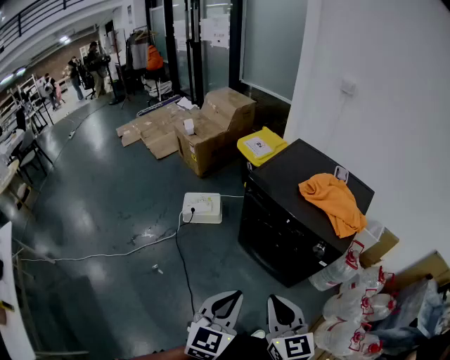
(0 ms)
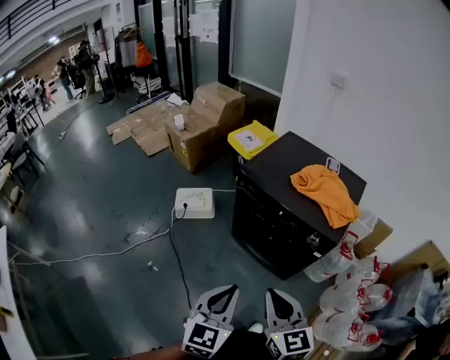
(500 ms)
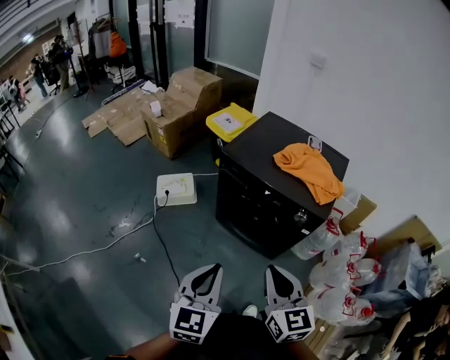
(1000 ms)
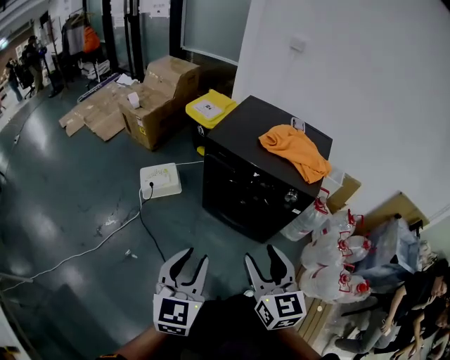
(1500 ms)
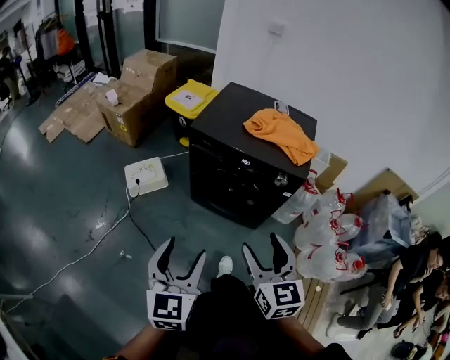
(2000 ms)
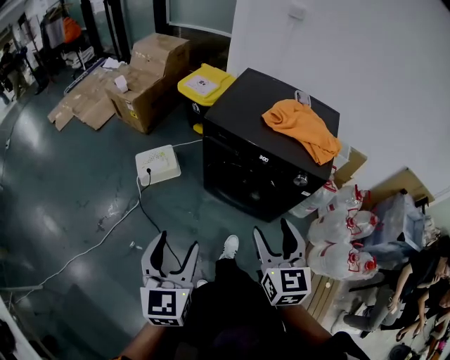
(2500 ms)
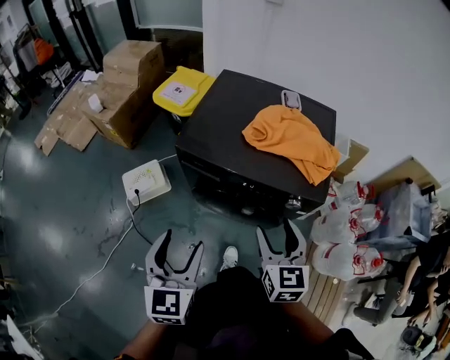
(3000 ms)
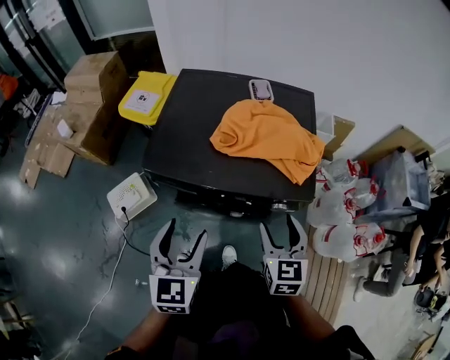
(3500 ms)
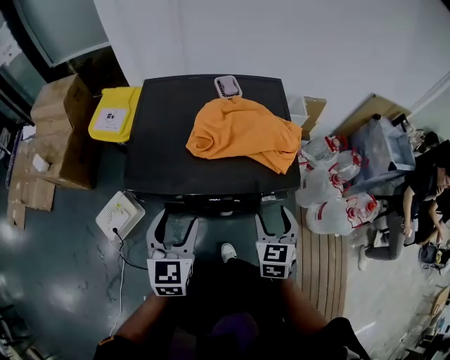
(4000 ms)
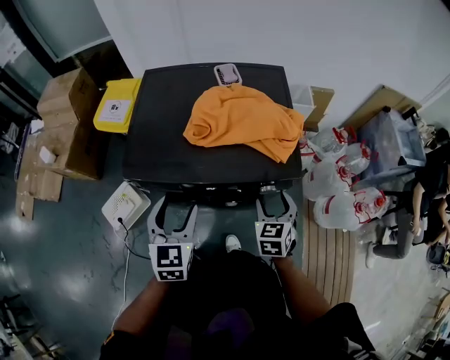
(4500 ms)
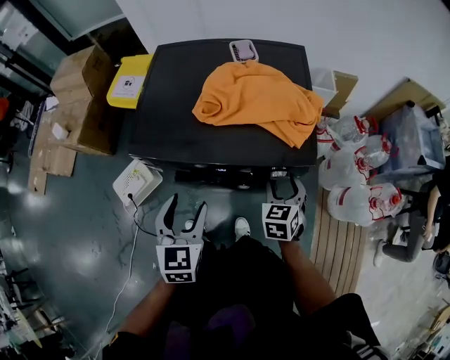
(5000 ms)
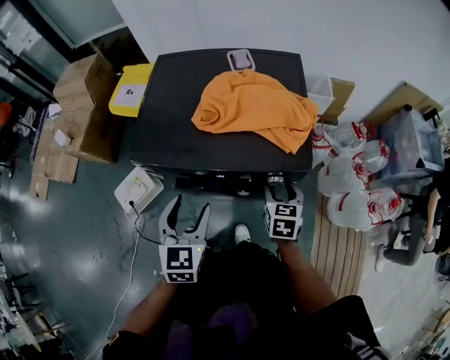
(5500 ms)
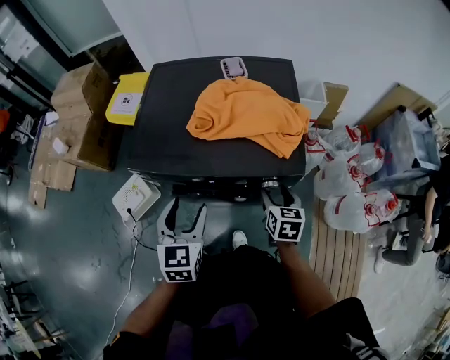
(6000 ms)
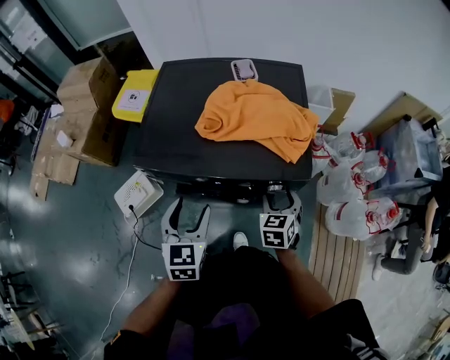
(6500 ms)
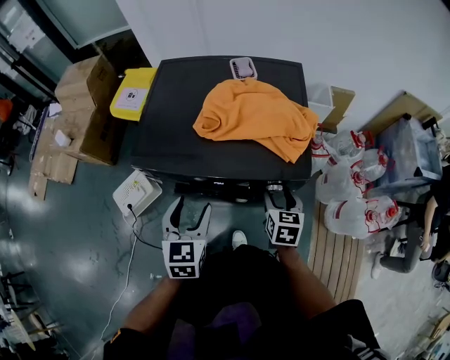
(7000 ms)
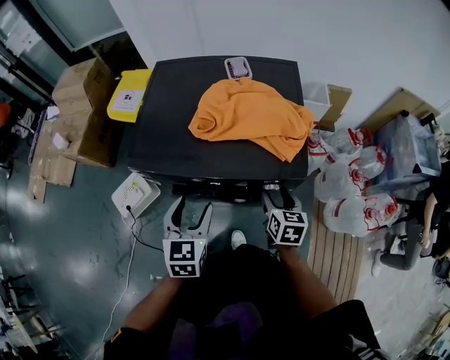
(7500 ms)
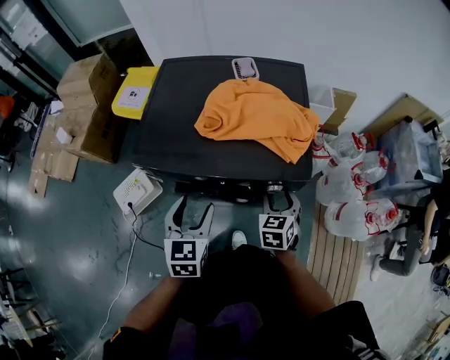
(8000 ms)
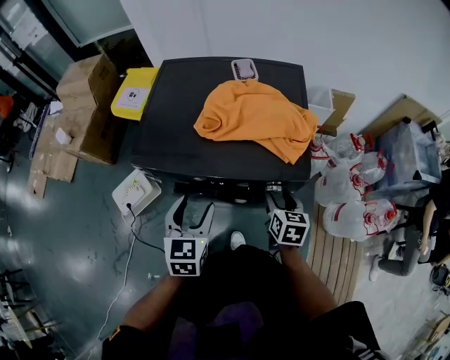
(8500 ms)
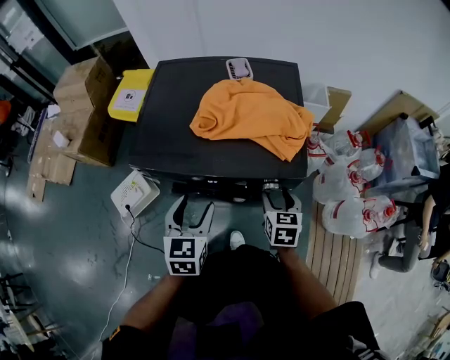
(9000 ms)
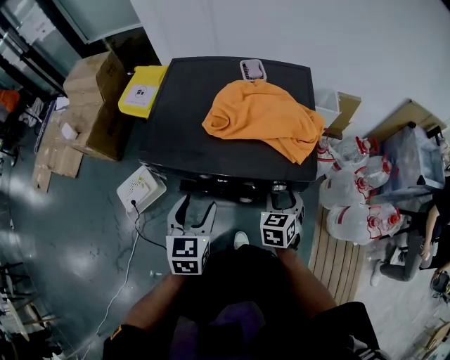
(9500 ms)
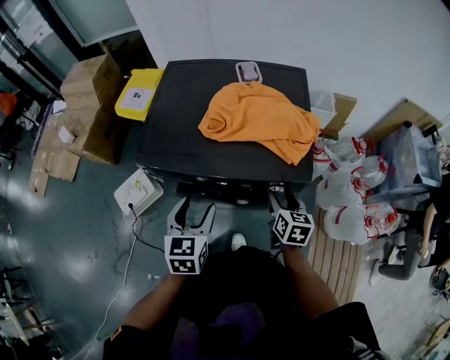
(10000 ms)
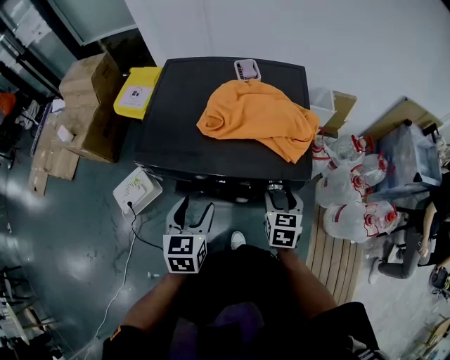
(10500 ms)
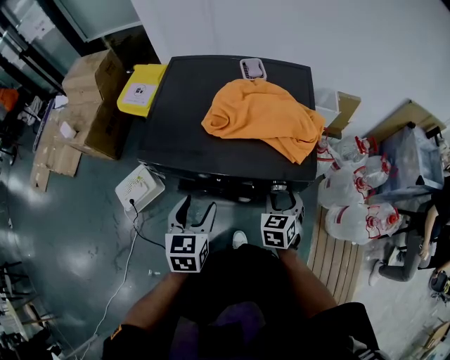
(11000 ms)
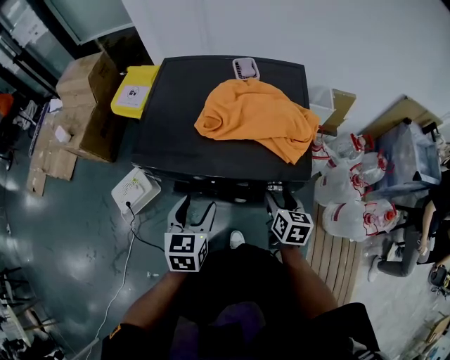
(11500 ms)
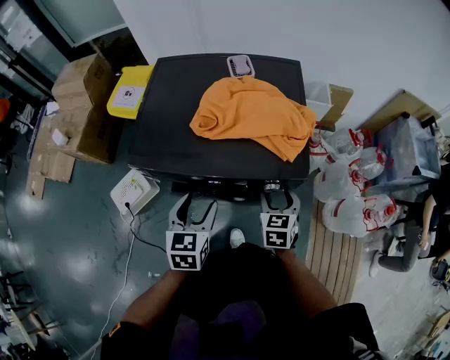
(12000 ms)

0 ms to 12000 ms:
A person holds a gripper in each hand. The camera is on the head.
0 ms to 2000 ms: The right gripper rotates some 20 degrees, and opens; the left gripper shifts about 10 cm to the left, and opens its fingers.
2000 ms to 4000 ms: The right gripper ends up some 40 cm from where it was, and rotates roughly 40 degrees, while the left gripper shifts by roughly 40 cm, and swivels about 20 degrees.
4000 ms to 6000 ms: The left gripper changes place by about 5 cm; the right gripper heads downward, covering some 10 cm, and rotates about 20 degrees.
6000 ms to 8000 ms: The right gripper swivels approximately 20 degrees.
8000 ms to 10000 ms: The right gripper swivels some 30 degrees.
10000 ms to 12000 ms: The right gripper changes its angle by some 20 degrees.

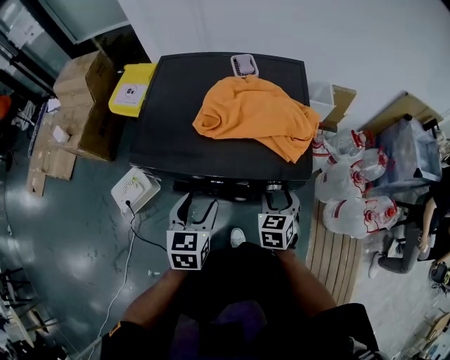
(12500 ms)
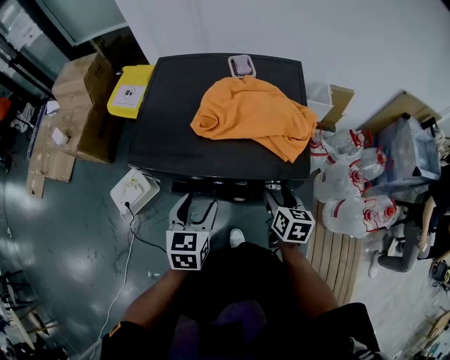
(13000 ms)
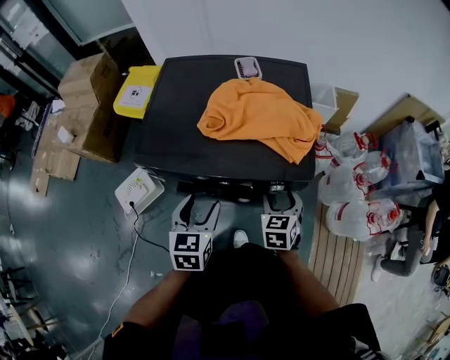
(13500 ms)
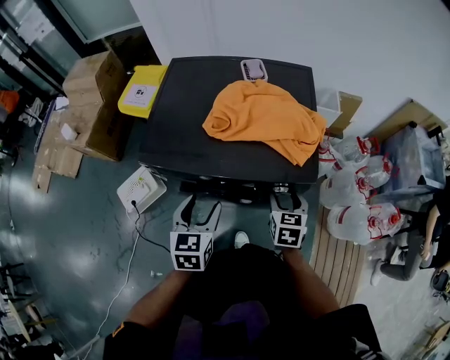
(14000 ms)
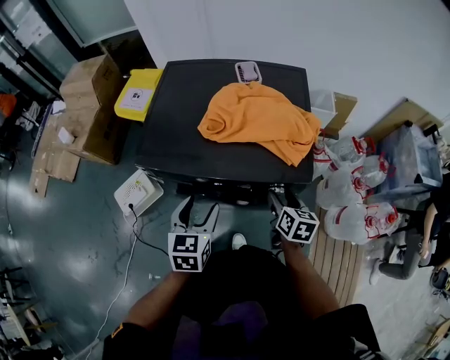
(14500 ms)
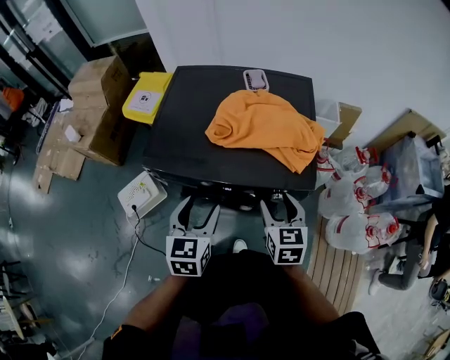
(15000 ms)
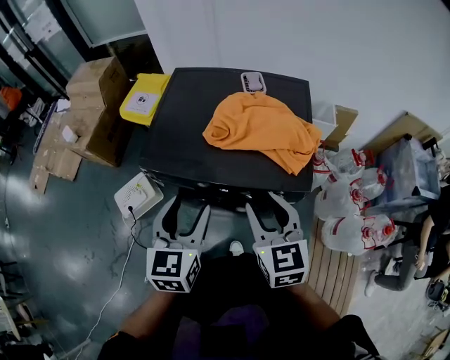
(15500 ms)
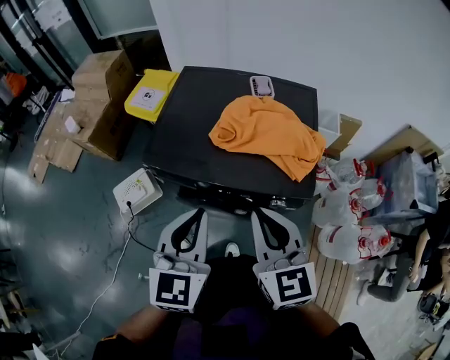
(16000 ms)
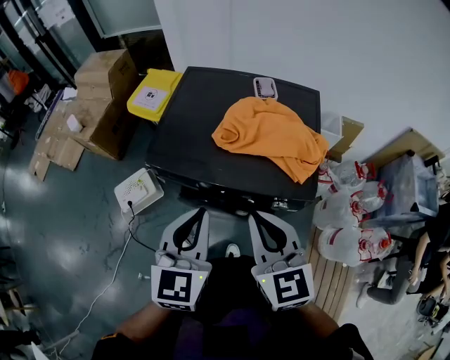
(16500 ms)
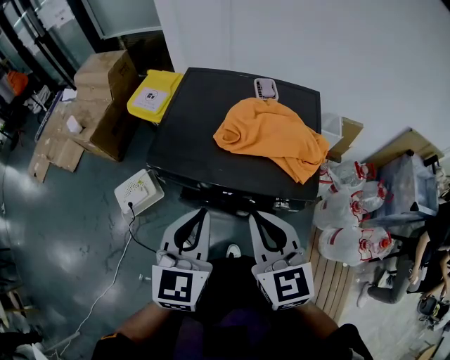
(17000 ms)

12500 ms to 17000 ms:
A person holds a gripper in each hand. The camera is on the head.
12500 ms to 14500 ms: The right gripper rotates some 40 degrees.
14500 ms to 17000 ms: The right gripper shifts about 30 cm upward and to the left, swivels approximately 40 degrees, and closes its fingers. The left gripper moves upward, approximately 15 cm, and closes.

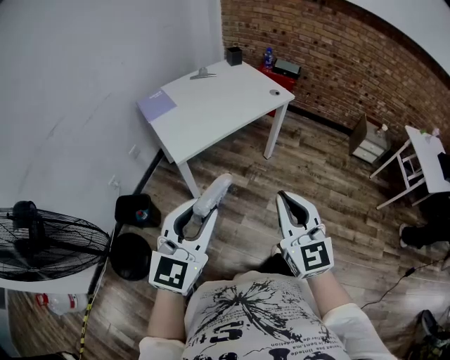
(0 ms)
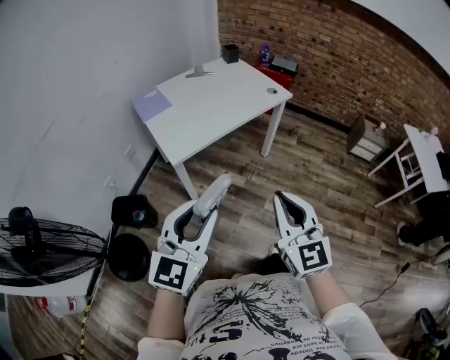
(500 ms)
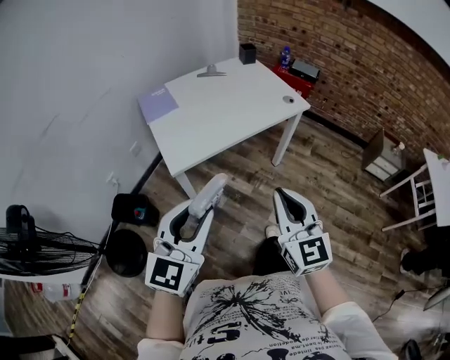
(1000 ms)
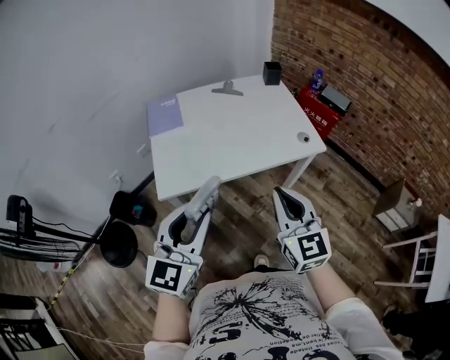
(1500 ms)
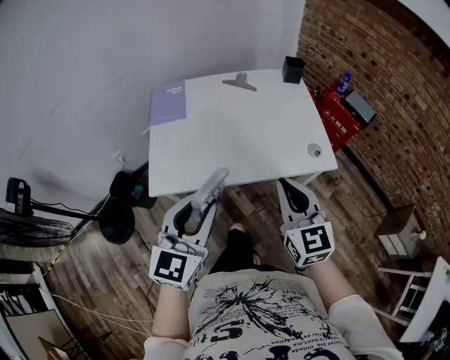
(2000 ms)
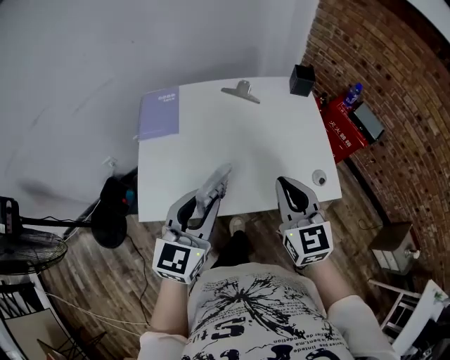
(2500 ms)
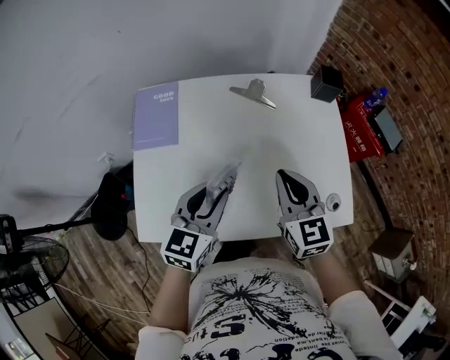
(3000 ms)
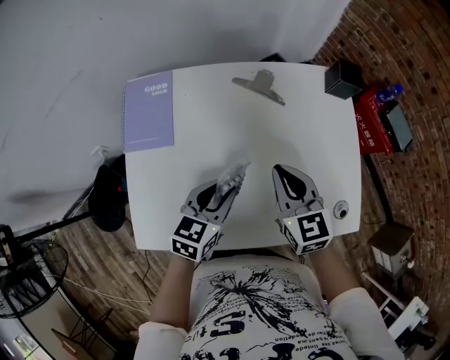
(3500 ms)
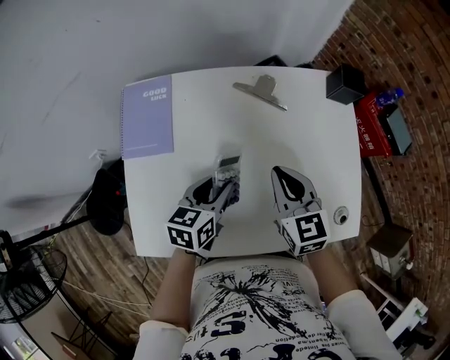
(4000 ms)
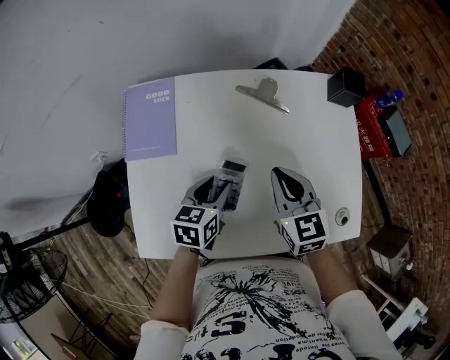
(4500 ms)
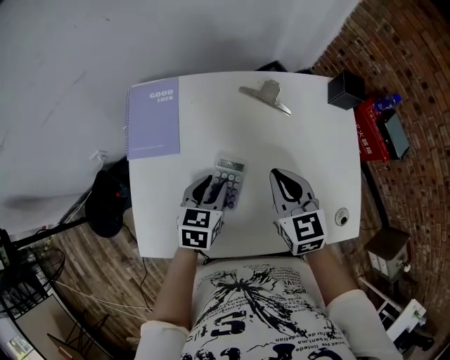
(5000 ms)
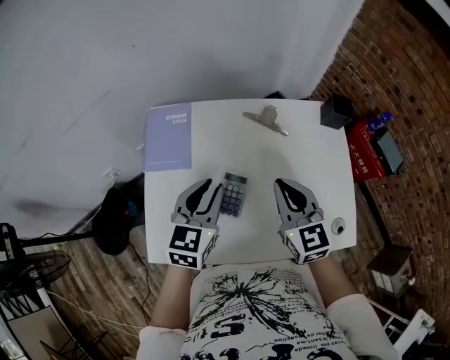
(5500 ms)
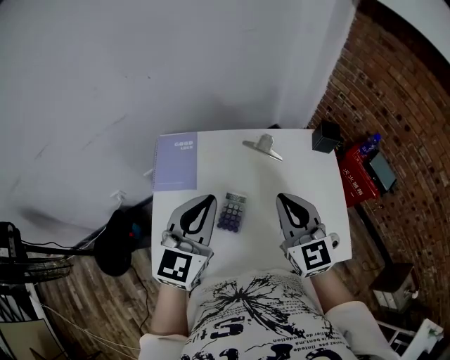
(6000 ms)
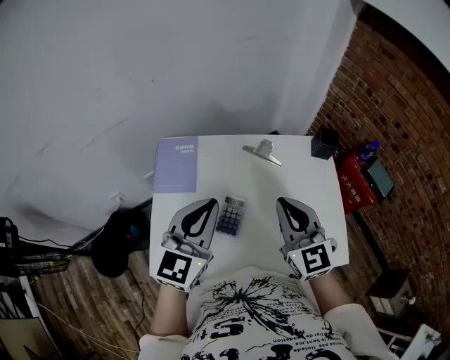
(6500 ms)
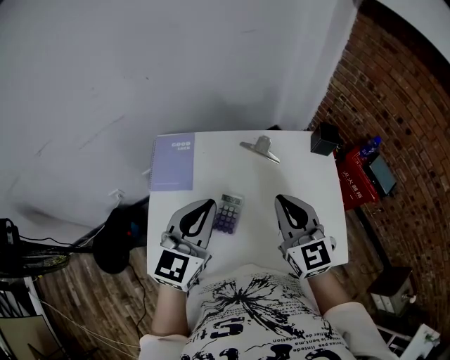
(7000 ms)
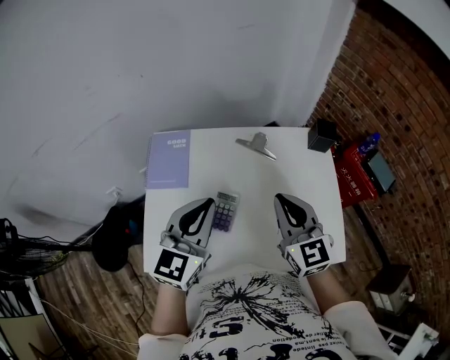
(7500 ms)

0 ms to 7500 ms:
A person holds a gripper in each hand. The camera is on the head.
0 ms to 2000 ms: Both grippers are carried approximately 50 cm. The right gripper turns by roughly 30 degrees. The left gripper changes its angle by about 30 degrees.
2000 ms to 4000 ms: The two grippers travel together, forward, approximately 40 cm. The grippers both shift downward by roughly 20 cm. The left gripper turns by roughly 40 degrees.
4000 ms to 5500 ms: The left gripper is displaced upward by some 15 cm, and swivels about 30 degrees. The right gripper moves upward, about 10 cm.
5500 ms to 7500 ms: Both grippers travel together upward, about 10 cm. The left gripper closes its fingers.

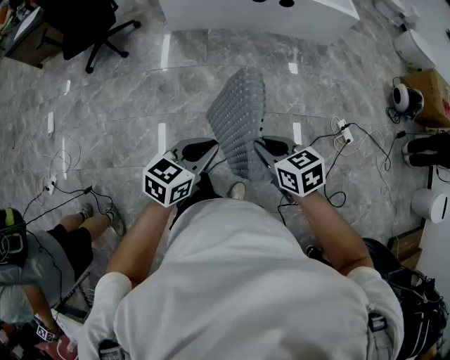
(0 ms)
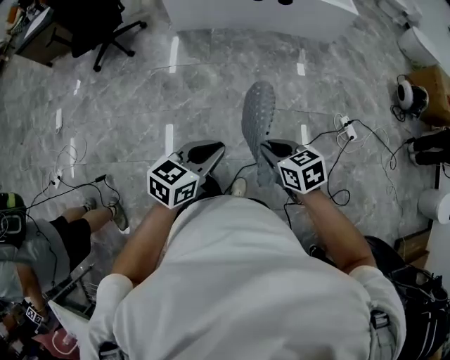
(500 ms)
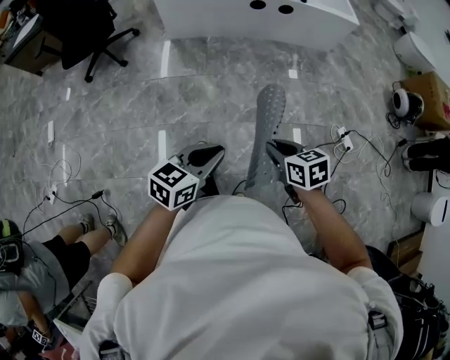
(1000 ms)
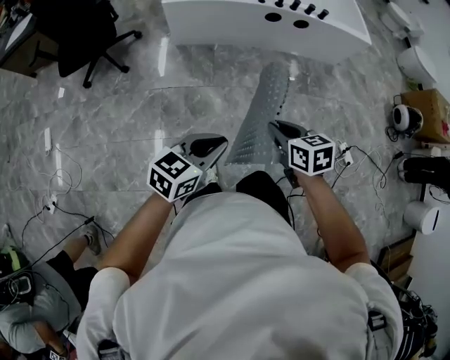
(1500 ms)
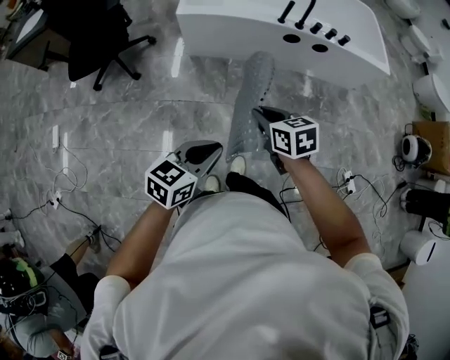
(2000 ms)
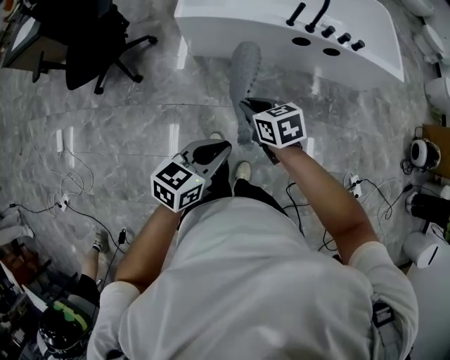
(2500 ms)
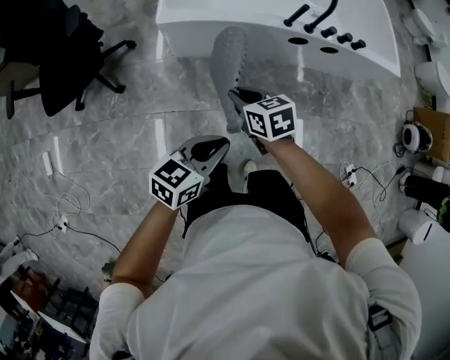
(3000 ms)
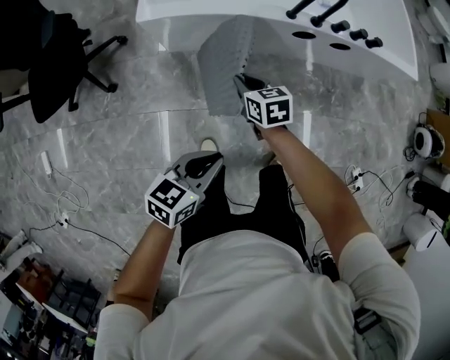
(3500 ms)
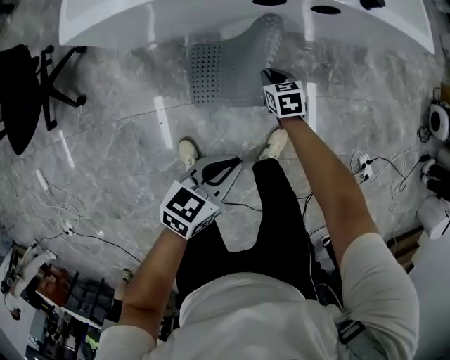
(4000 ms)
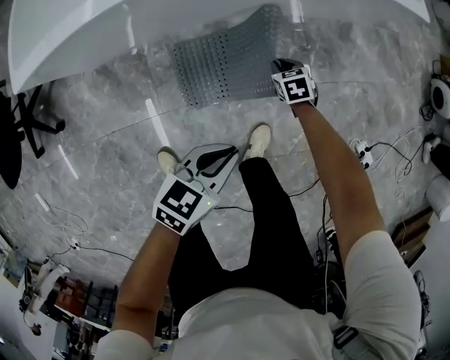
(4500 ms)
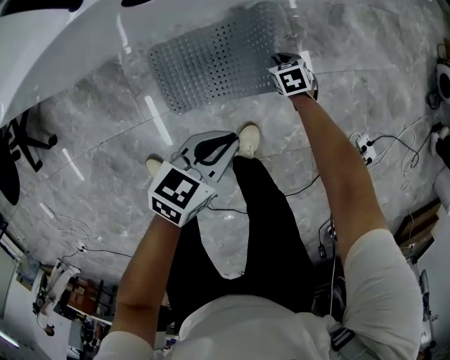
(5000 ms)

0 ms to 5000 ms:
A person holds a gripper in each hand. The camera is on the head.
0 ms to 2500 ms: Both grippers are carried forward, approximately 50 cm.
2500 ms to 5000 ms: The two grippers travel together, roughly 60 cm. The left gripper turns by roughly 30 degrees, while the right gripper turns by some 30 degrees.
